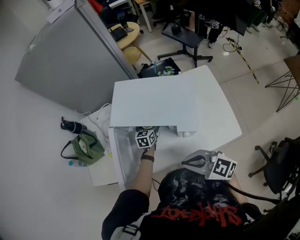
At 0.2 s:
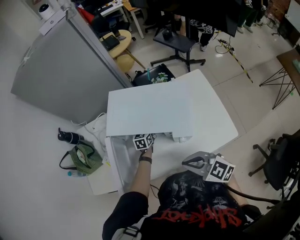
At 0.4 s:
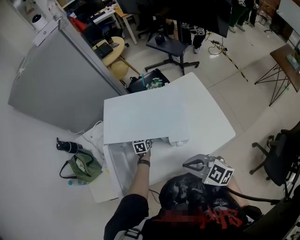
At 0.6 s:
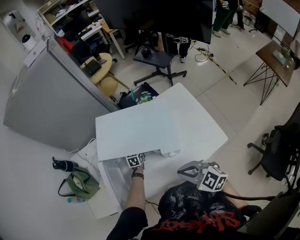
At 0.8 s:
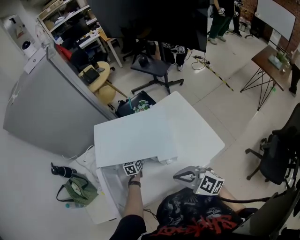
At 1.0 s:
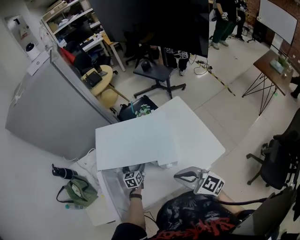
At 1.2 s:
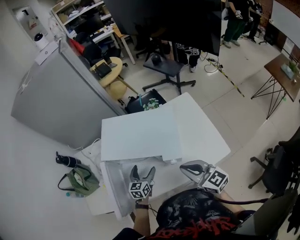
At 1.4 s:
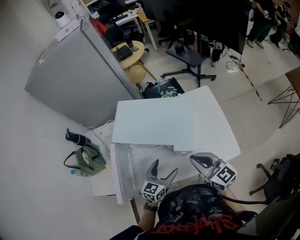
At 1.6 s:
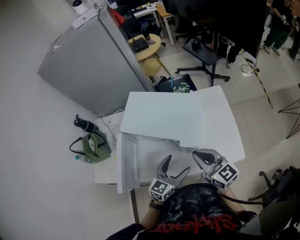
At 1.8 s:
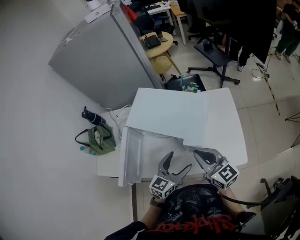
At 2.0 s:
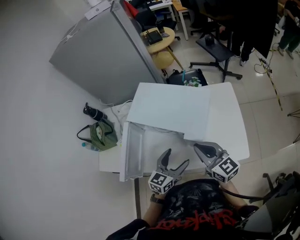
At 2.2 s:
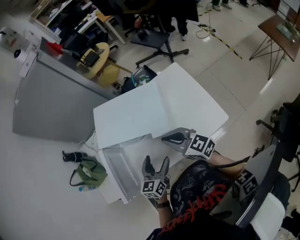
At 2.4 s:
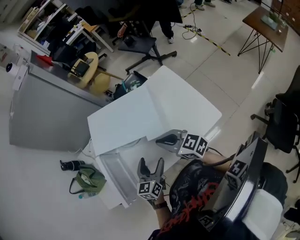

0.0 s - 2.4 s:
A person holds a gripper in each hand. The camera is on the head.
0.0 s - 1.2 s: The left gripper moves backward and upward, roughly 15 cm. Meanwhile the right gripper is displaced to the right by approximately 10 cm, and changes its angle by some 30 degrees.
1.2 s - 2.4 s: The left gripper travels upward, backward and to the right by approximately 15 cm.

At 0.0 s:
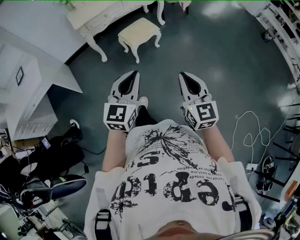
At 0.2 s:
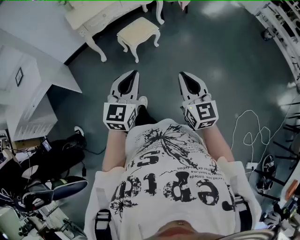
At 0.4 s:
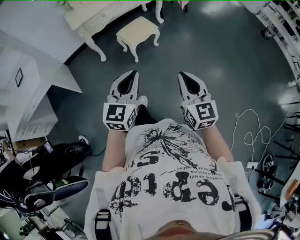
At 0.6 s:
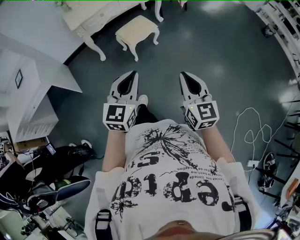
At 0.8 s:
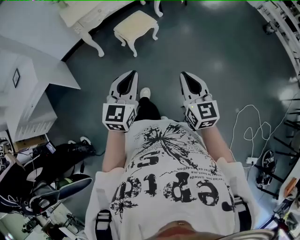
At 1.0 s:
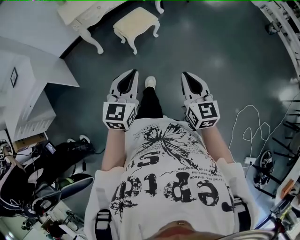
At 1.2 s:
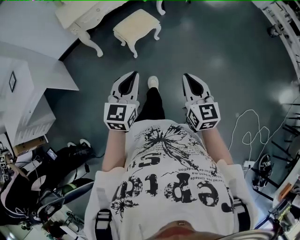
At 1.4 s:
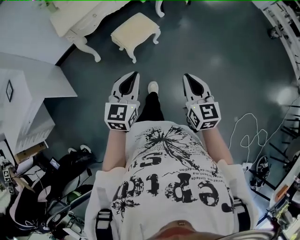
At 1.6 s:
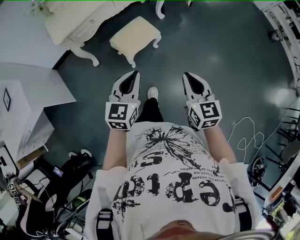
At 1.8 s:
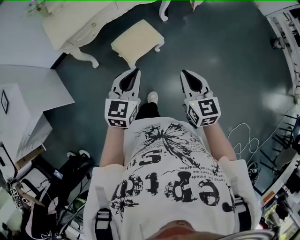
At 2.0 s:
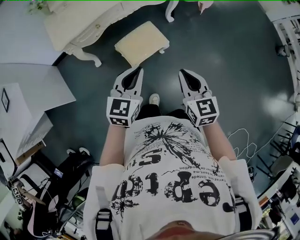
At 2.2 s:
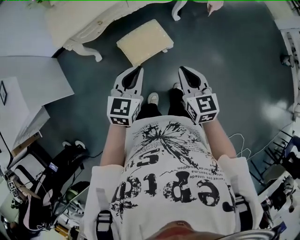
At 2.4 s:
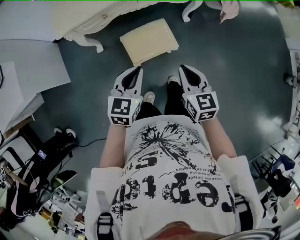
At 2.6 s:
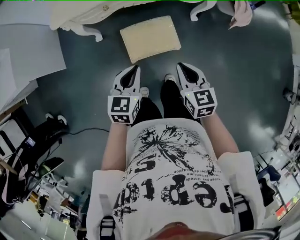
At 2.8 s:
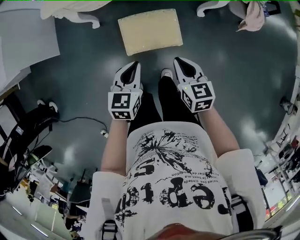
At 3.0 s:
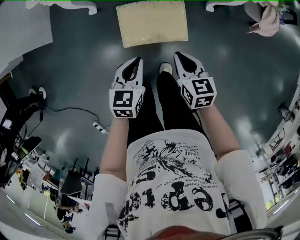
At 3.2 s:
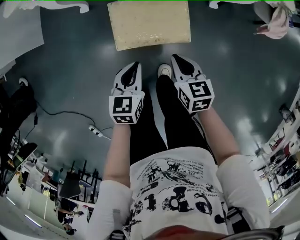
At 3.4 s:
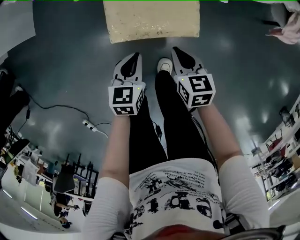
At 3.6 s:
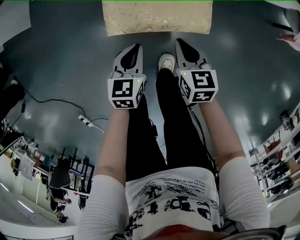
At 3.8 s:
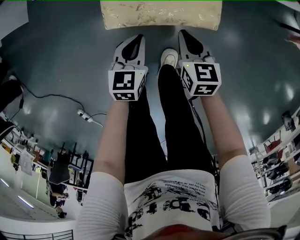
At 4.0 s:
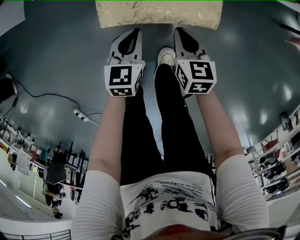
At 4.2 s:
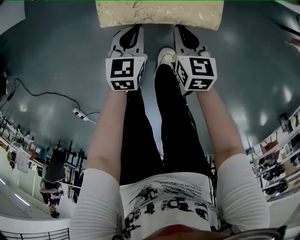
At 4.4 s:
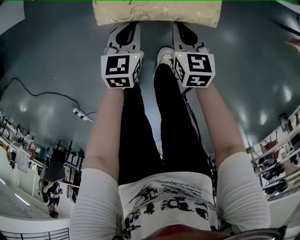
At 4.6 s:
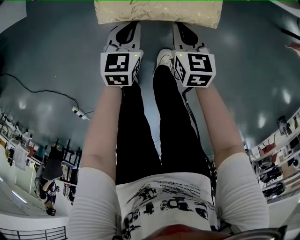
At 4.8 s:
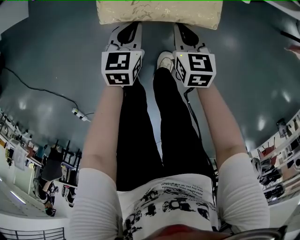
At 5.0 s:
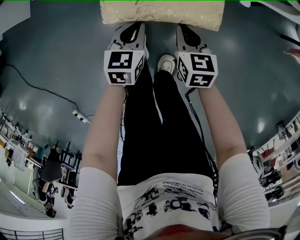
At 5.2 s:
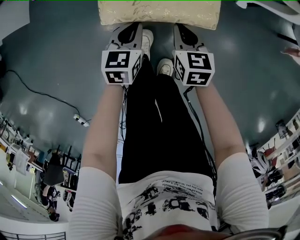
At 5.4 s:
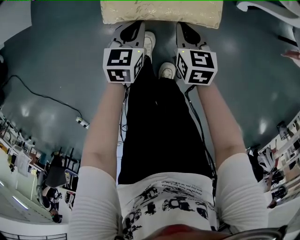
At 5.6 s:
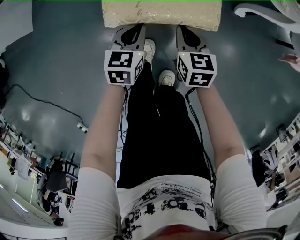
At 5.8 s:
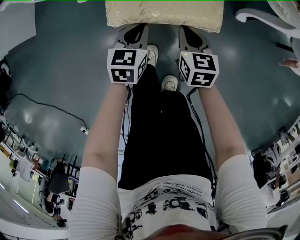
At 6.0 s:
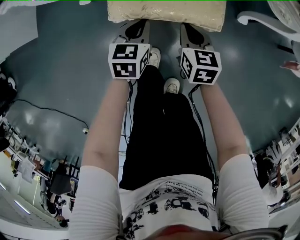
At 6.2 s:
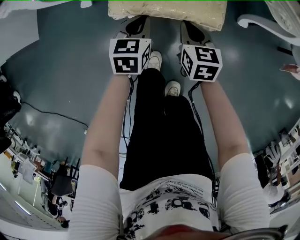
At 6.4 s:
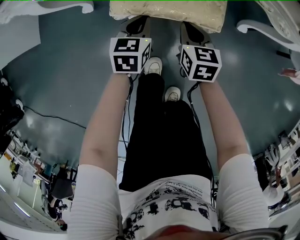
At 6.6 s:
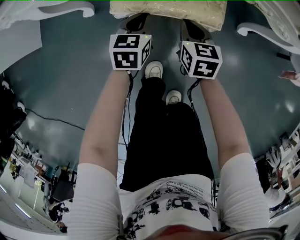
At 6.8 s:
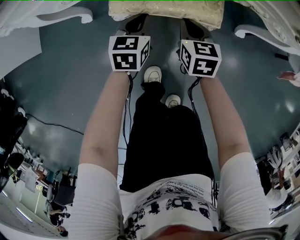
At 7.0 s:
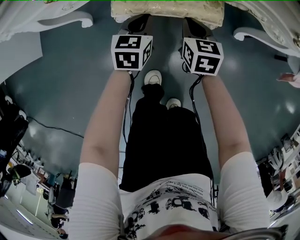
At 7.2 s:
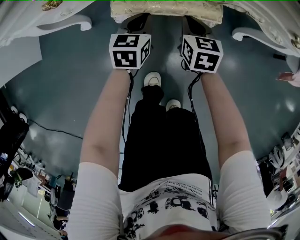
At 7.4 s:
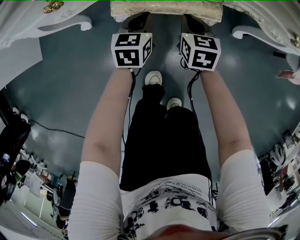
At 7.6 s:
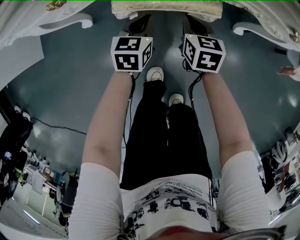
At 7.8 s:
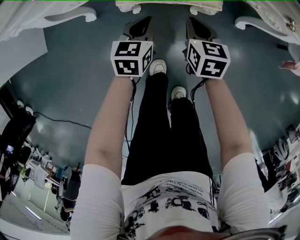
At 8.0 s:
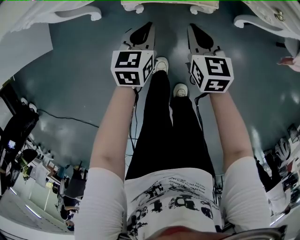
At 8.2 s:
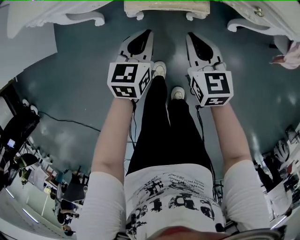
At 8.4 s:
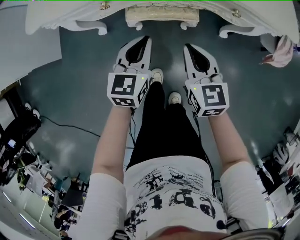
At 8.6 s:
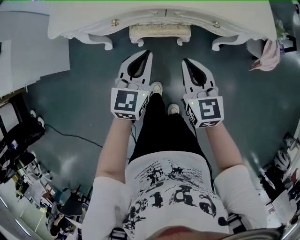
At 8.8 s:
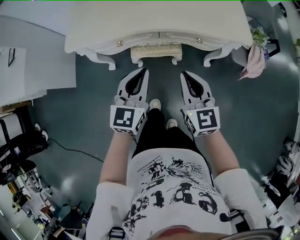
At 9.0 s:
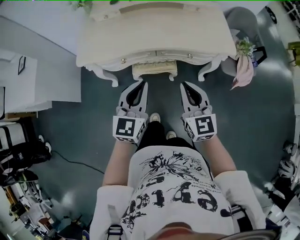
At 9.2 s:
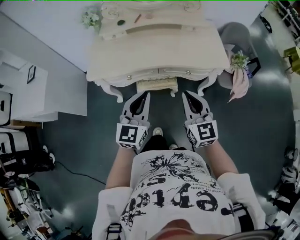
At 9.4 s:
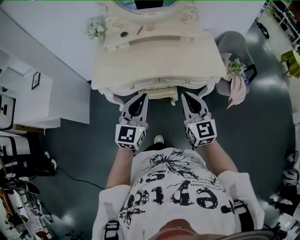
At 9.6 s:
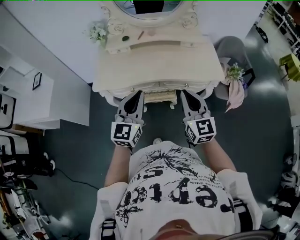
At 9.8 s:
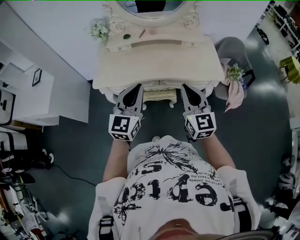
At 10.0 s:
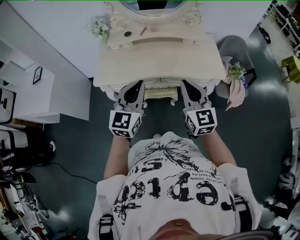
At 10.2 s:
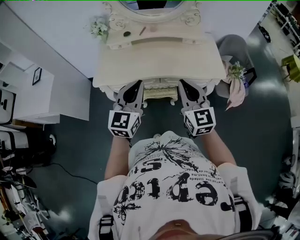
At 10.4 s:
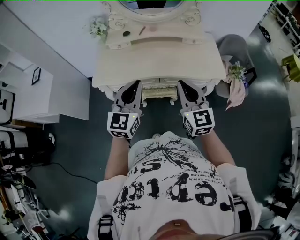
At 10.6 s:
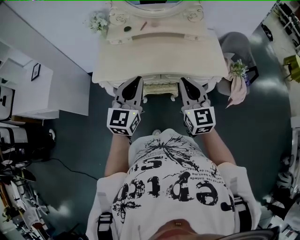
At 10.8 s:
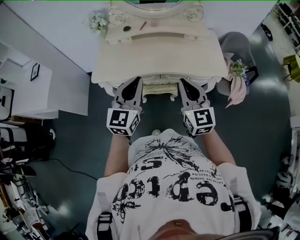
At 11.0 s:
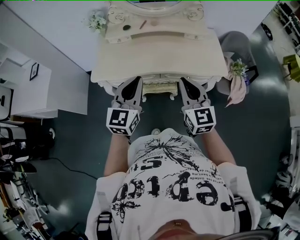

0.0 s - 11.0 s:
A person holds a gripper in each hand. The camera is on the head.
0.0 s - 1.6 s: Both grippers travel together forward, about 30 cm.
1.6 s - 3.2 s: Both grippers move downward, about 40 cm. The right gripper turns by some 50 degrees, while the left gripper turns by roughly 50 degrees.
3.2 s - 4.8 s: Both grippers move downward, some 20 cm.
4.8 s - 6.2 s: Both grippers move forward, roughly 20 cm.
6.2 s - 7.8 s: Both grippers travel together forward, about 5 cm.
7.8 s - 9.4 s: The grippers both shift upward by about 70 cm. The left gripper points its fingers approximately 40 degrees further upward; the right gripper tips its fingers upward by roughly 40 degrees.
9.4 s - 11.0 s: The grippers both shift forward by roughly 5 cm.

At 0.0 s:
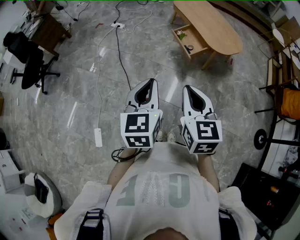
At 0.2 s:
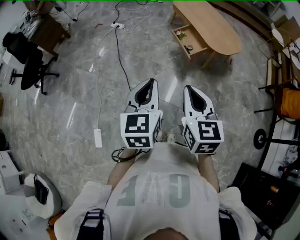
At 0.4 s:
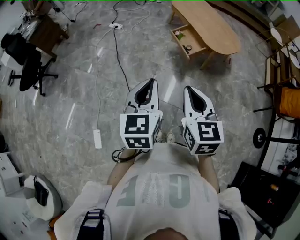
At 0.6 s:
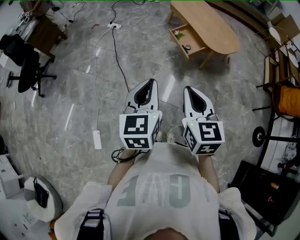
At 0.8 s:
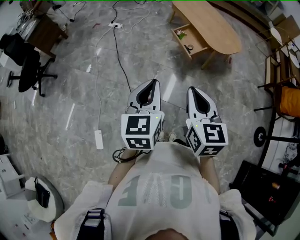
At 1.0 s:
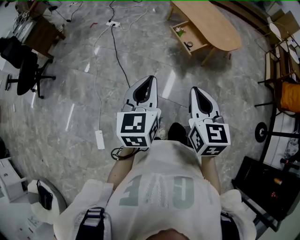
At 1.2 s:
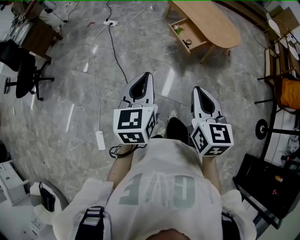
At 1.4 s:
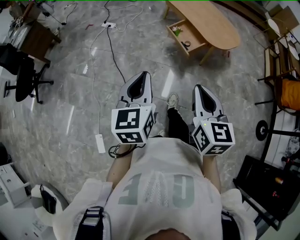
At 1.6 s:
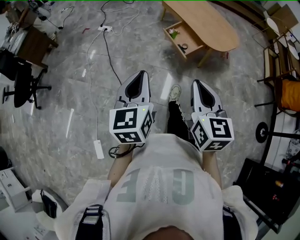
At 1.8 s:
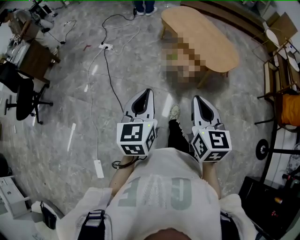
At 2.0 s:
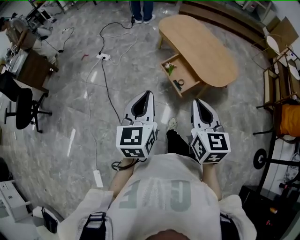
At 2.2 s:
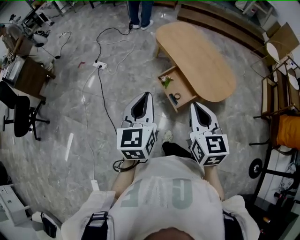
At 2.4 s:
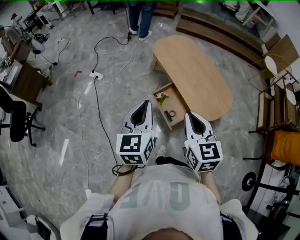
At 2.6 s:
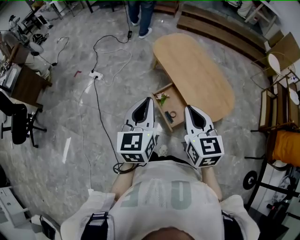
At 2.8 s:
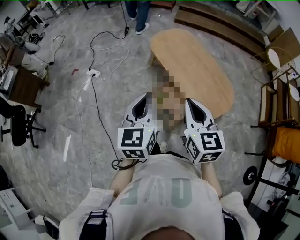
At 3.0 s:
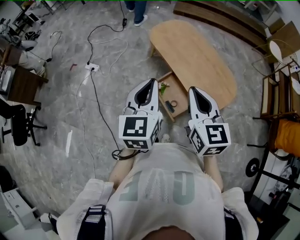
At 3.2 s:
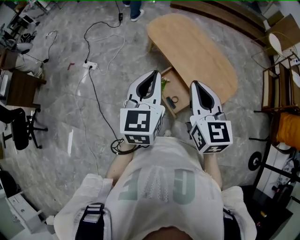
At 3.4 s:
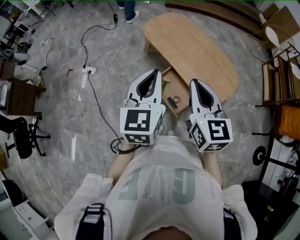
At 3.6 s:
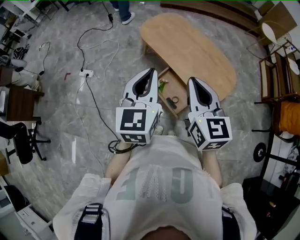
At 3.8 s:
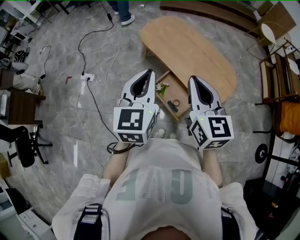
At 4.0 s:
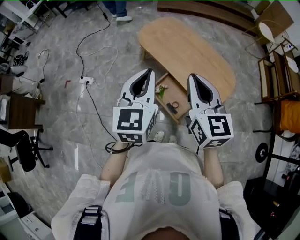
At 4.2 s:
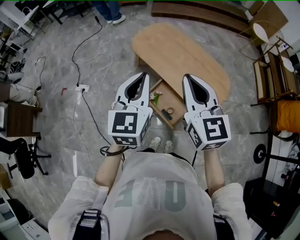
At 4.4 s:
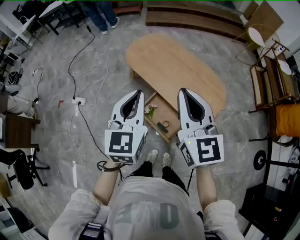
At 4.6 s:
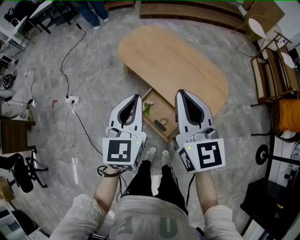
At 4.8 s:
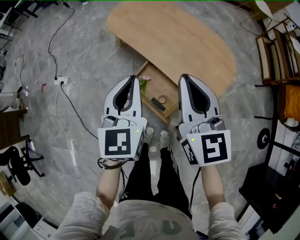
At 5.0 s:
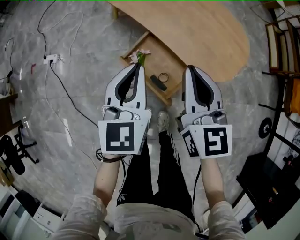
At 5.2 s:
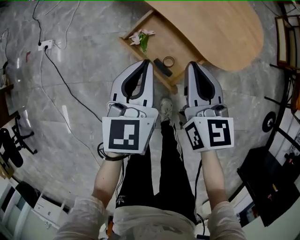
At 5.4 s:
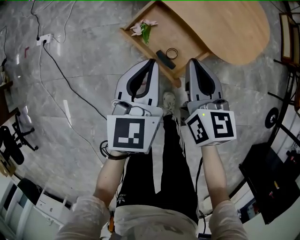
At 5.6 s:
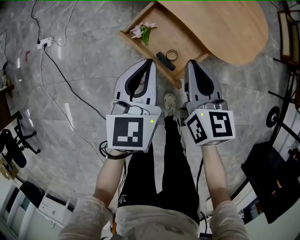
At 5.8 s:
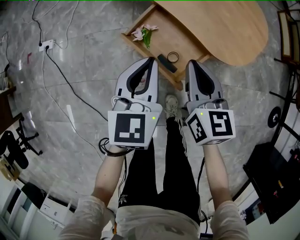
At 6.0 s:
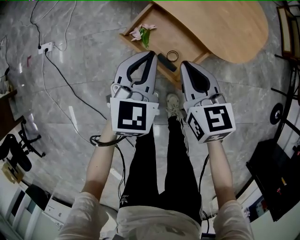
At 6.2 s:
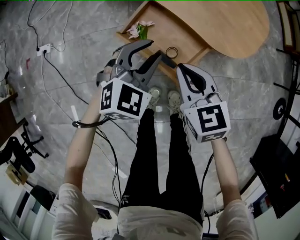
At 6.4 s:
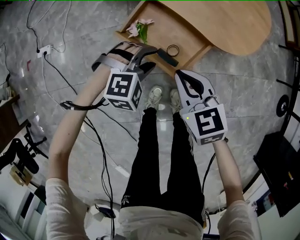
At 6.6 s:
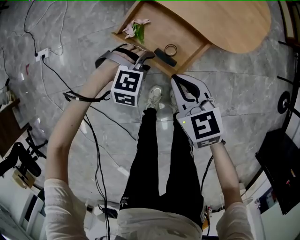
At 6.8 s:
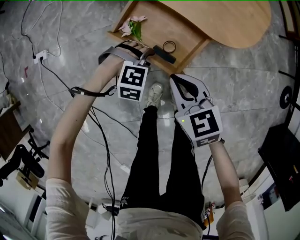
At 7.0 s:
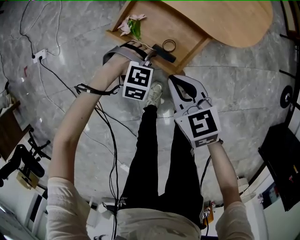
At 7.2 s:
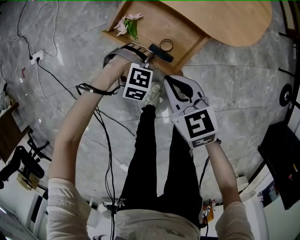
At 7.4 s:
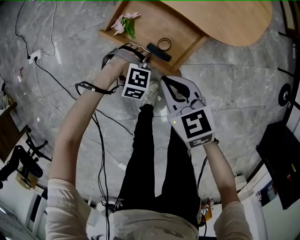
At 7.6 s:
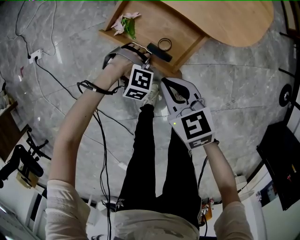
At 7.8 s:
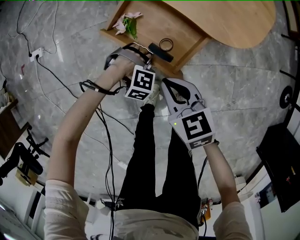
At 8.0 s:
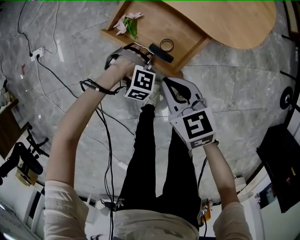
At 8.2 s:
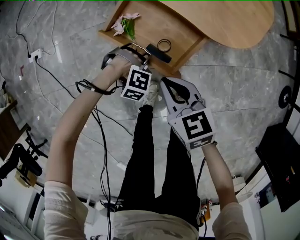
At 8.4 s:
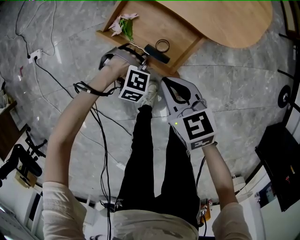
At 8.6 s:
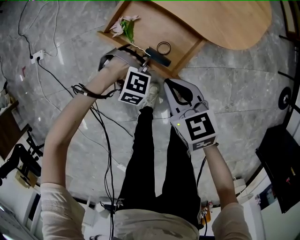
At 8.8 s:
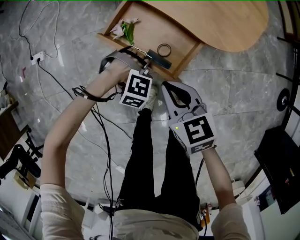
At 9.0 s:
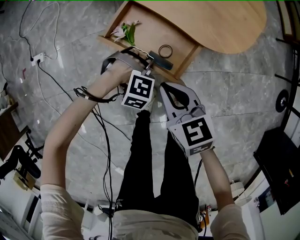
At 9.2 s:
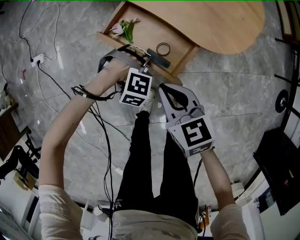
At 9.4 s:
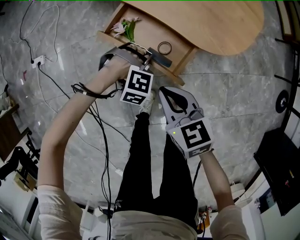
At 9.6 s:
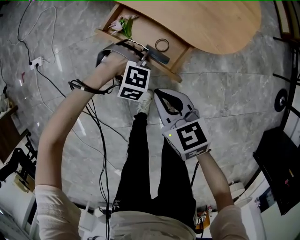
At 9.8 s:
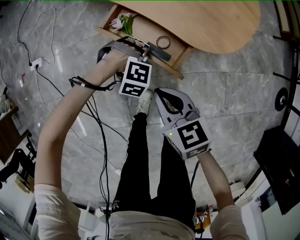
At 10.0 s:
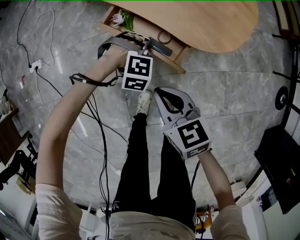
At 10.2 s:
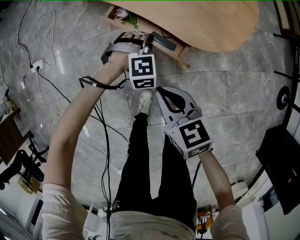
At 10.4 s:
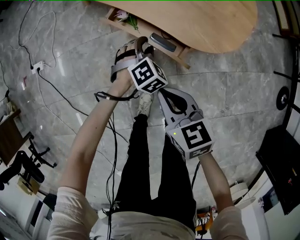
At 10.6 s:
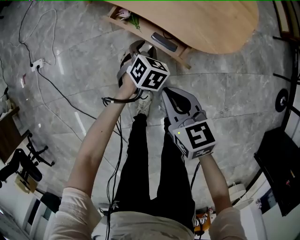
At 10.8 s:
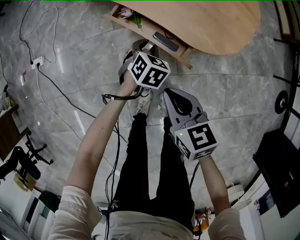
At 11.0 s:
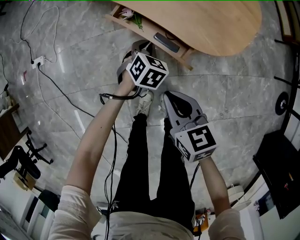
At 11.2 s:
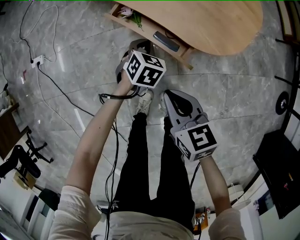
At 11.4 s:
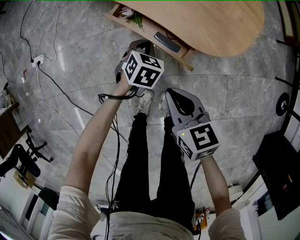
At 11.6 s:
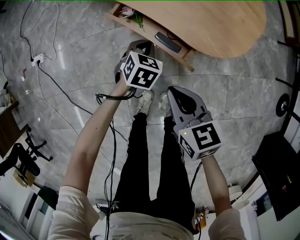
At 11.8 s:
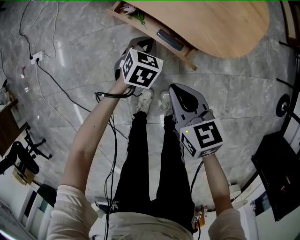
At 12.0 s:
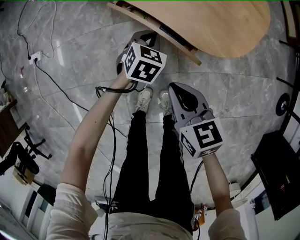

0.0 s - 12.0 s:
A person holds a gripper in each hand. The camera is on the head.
0.0 s - 1.6 s: Both grippers travel together forward, approximately 10 cm.
1.6 s - 3.0 s: The two grippers travel together, forward, roughly 50 cm.
3.0 s - 4.4 s: The grippers both shift forward by about 10 cm.
4.4 s - 6.0 s: Both grippers move downward, about 40 cm. The left gripper changes its angle by some 20 degrees, while the right gripper rotates approximately 30 degrees.
6.0 s - 7.6 s: The right gripper moves downward, approximately 10 cm; the left gripper goes some 30 cm downward, twists some 80 degrees clockwise, seen from behind, and opens, then closes again.
7.6 s - 9.0 s: The left gripper moves upward, roughly 5 cm.
9.0 s - 10.4 s: The left gripper moves roughly 15 cm, and rolls counterclockwise, seen from behind, by some 50 degrees.
10.4 s - 12.0 s: The left gripper changes its angle by roughly 30 degrees, and closes up.
